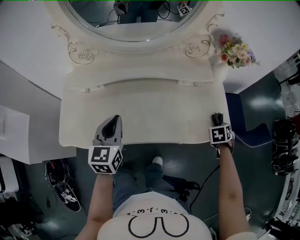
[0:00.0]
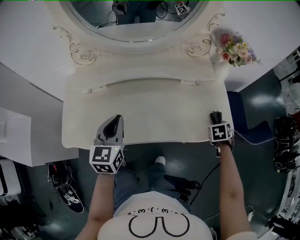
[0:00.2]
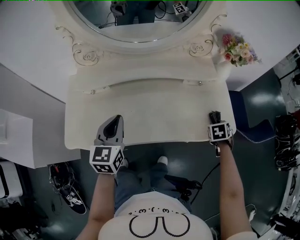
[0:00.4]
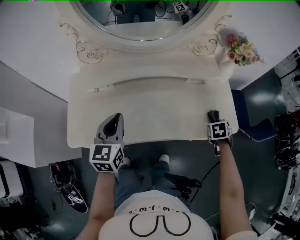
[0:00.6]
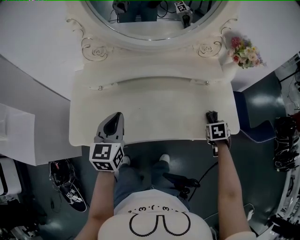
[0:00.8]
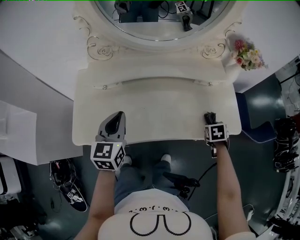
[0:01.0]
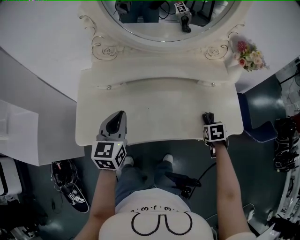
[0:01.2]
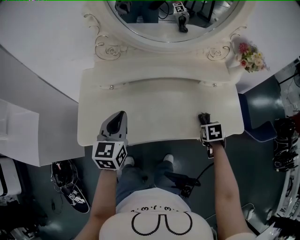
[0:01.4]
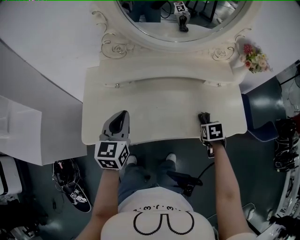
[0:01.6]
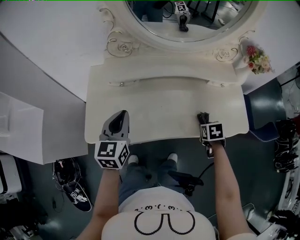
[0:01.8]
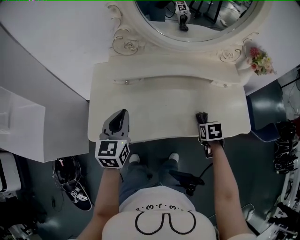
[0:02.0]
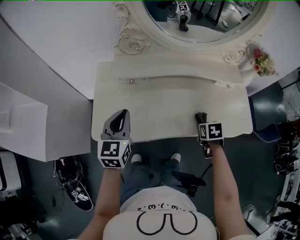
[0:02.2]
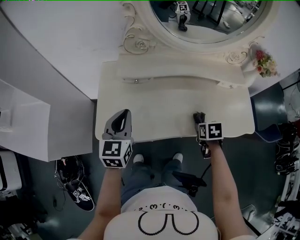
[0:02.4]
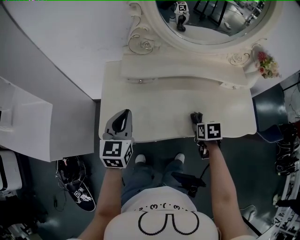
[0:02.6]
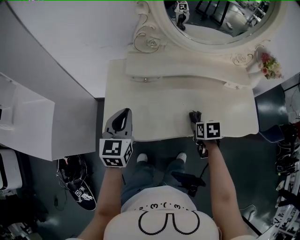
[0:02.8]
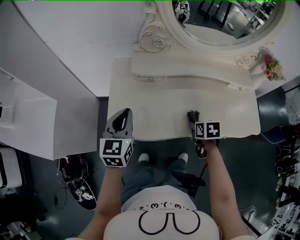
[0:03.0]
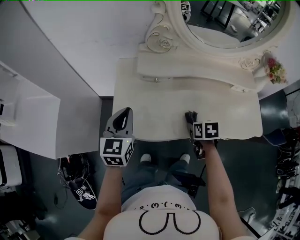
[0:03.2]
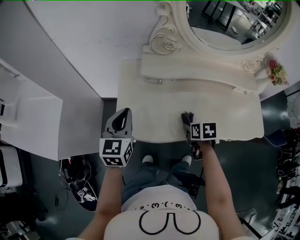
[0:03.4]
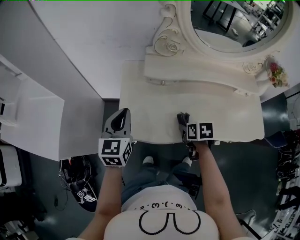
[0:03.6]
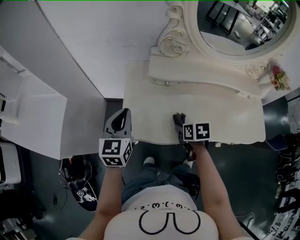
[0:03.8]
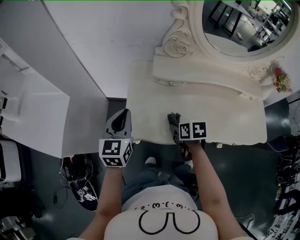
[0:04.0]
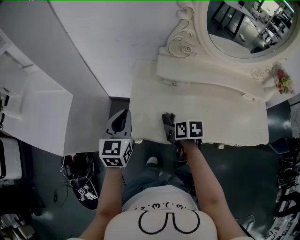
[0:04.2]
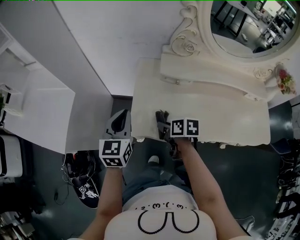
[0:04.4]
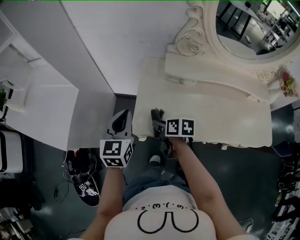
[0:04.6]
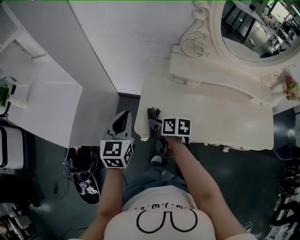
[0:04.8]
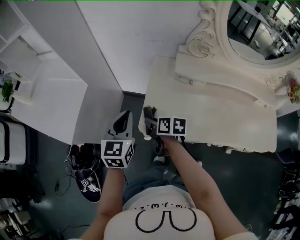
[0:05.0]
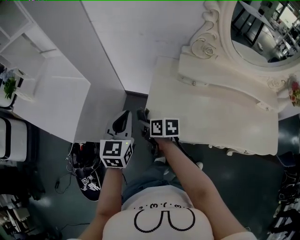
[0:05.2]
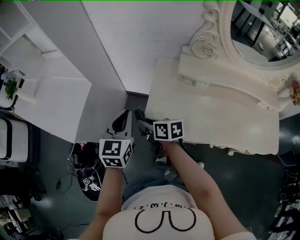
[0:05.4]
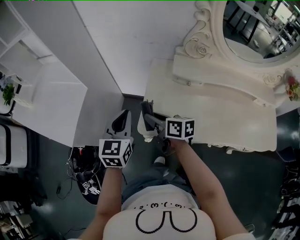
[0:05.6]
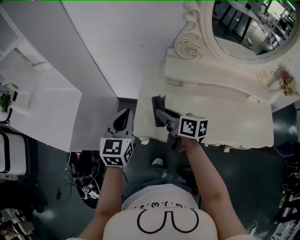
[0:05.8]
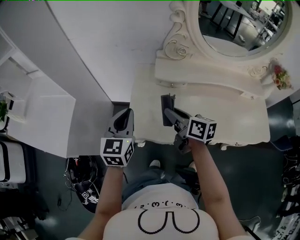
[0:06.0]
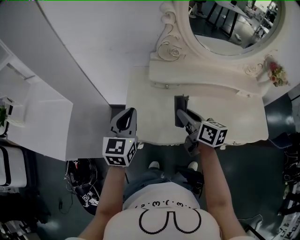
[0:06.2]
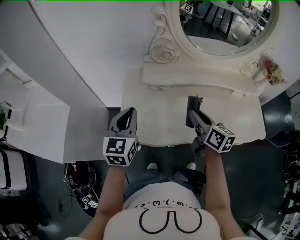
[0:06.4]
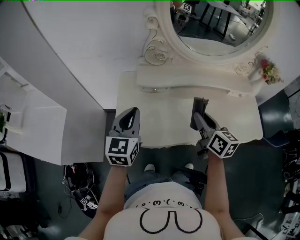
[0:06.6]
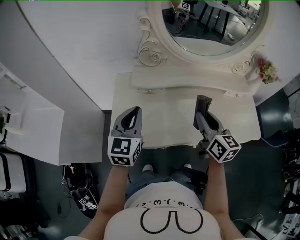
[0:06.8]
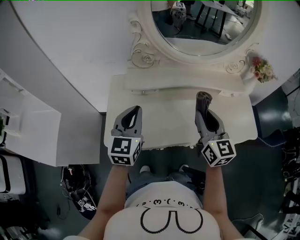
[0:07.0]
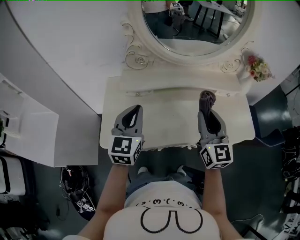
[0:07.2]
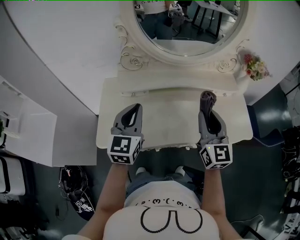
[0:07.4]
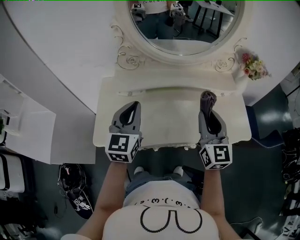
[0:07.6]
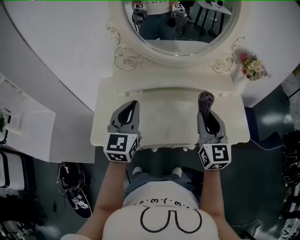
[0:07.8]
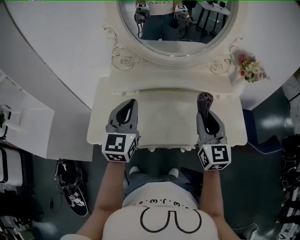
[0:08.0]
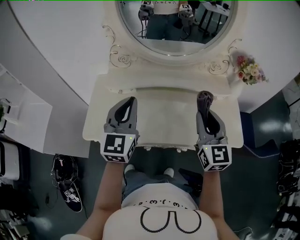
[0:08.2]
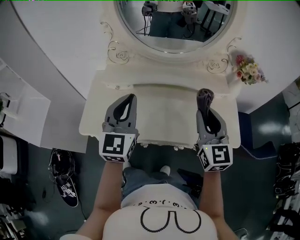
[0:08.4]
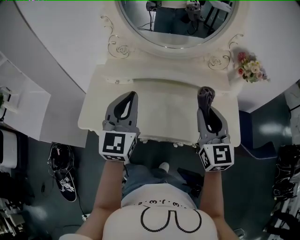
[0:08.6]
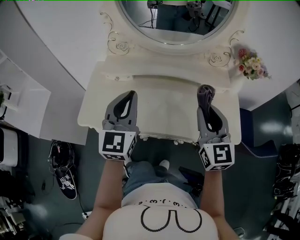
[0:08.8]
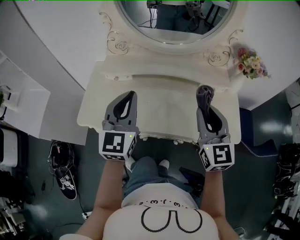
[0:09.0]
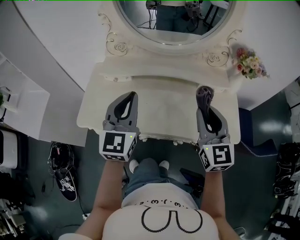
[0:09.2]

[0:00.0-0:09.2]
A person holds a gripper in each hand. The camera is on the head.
0:00.0 to 0:01.6: The right gripper moves to the left and backward, roughly 25 cm, while the left gripper moves to the left, roughly 15 cm.
0:01.6 to 0:03.0: The left gripper goes about 15 cm to the left. The right gripper shifts about 25 cm to the left.
0:03.0 to 0:04.6: The left gripper shifts approximately 15 cm to the left; the right gripper shifts some 30 cm to the left, and rotates some 30 degrees.
0:04.6 to 0:06.2: The right gripper shifts some 20 cm to the right and upward, and rotates about 30 degrees. Meanwhile the left gripper shifts approximately 10 cm to the right.
0:06.2 to 0:07.6: The right gripper moves to the right and upward, approximately 30 cm, and turns by approximately 50 degrees, while the left gripper is displaced to the right by roughly 20 cm.
0:07.6 to 0:09.2: The grippers both shift to the right by some 10 cm.

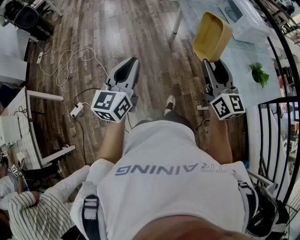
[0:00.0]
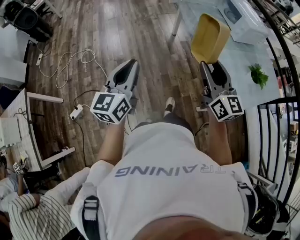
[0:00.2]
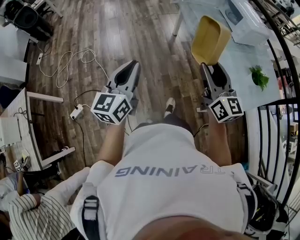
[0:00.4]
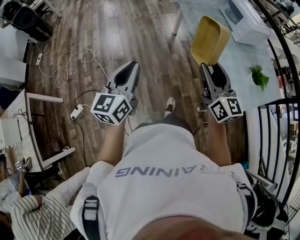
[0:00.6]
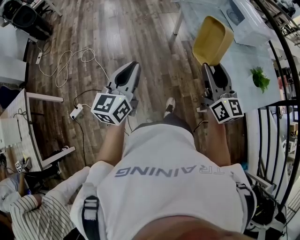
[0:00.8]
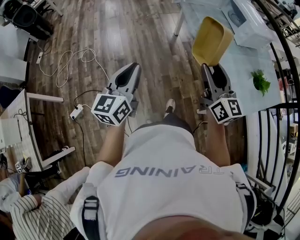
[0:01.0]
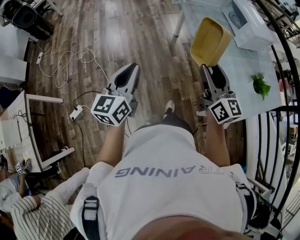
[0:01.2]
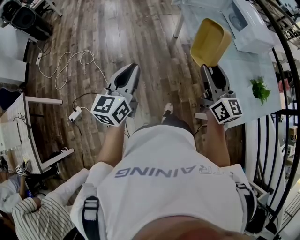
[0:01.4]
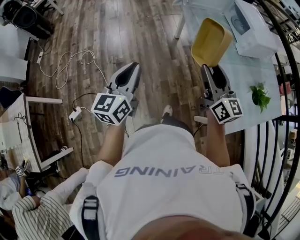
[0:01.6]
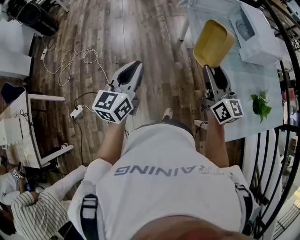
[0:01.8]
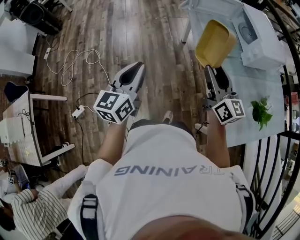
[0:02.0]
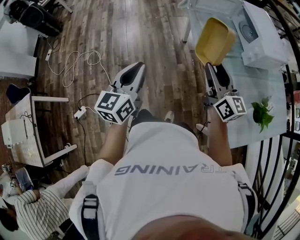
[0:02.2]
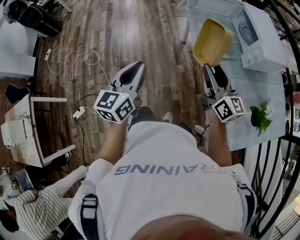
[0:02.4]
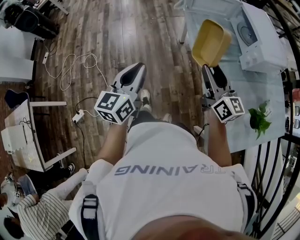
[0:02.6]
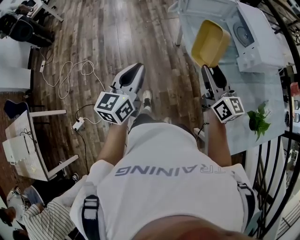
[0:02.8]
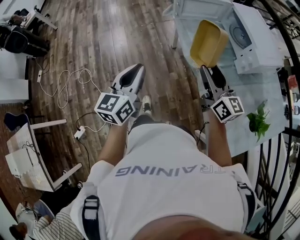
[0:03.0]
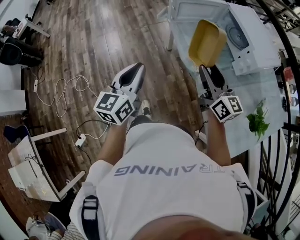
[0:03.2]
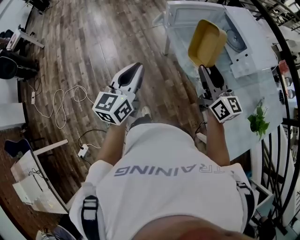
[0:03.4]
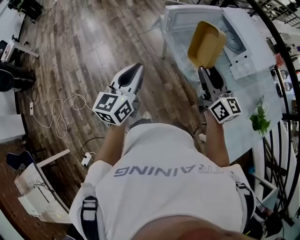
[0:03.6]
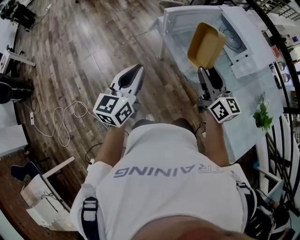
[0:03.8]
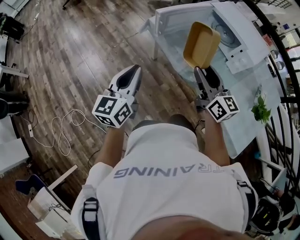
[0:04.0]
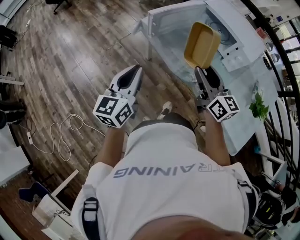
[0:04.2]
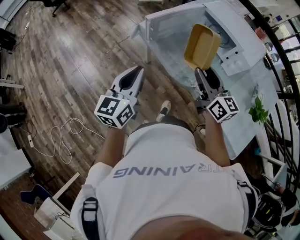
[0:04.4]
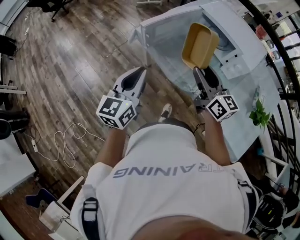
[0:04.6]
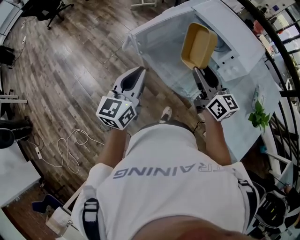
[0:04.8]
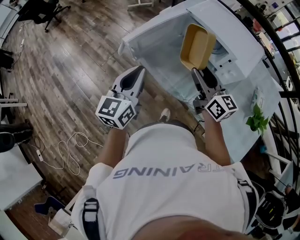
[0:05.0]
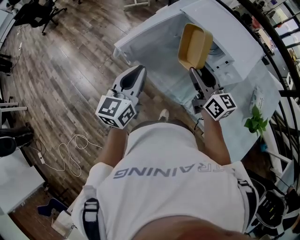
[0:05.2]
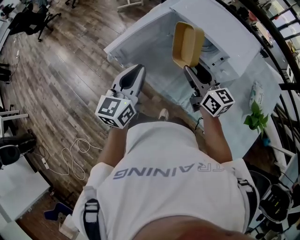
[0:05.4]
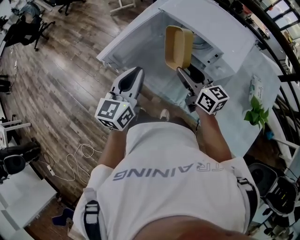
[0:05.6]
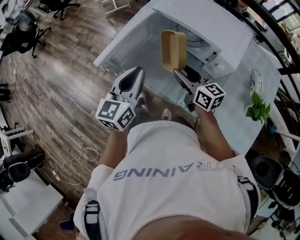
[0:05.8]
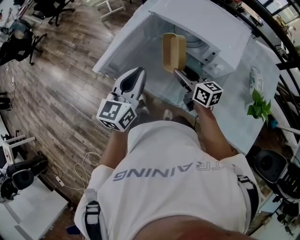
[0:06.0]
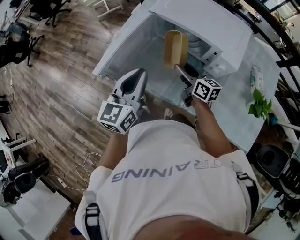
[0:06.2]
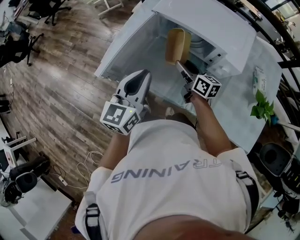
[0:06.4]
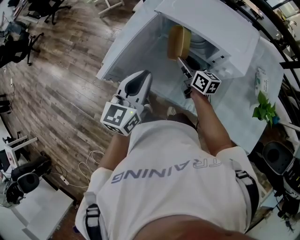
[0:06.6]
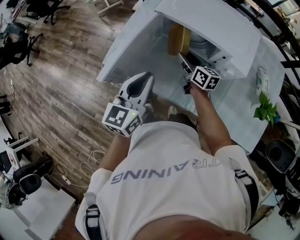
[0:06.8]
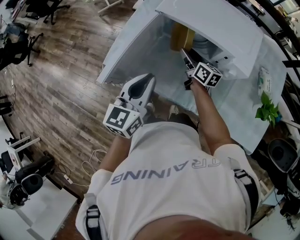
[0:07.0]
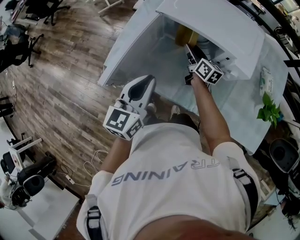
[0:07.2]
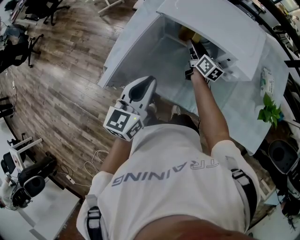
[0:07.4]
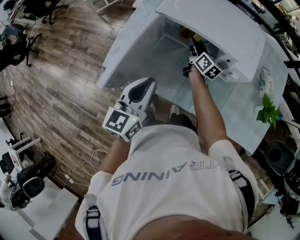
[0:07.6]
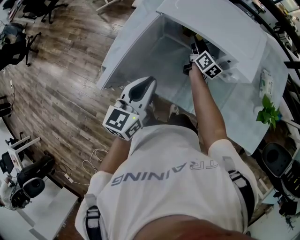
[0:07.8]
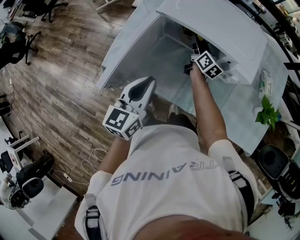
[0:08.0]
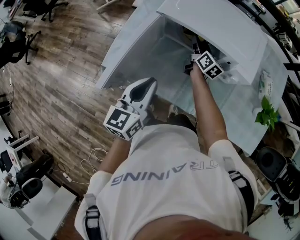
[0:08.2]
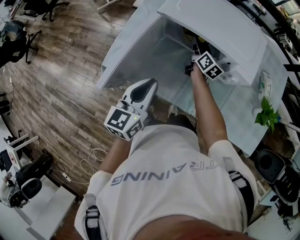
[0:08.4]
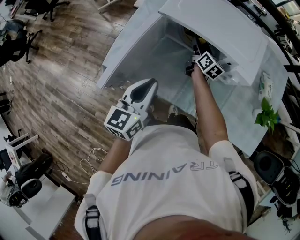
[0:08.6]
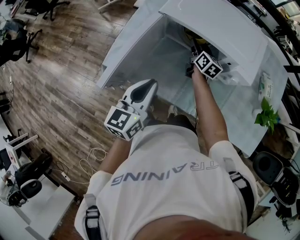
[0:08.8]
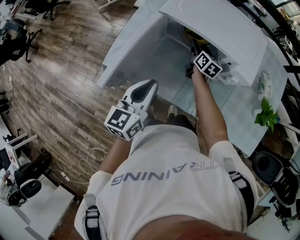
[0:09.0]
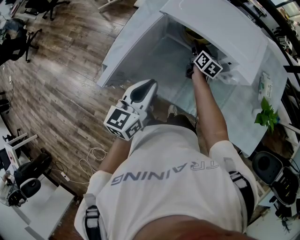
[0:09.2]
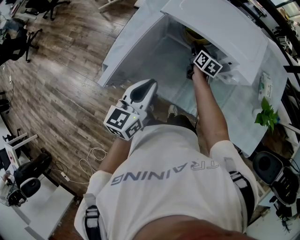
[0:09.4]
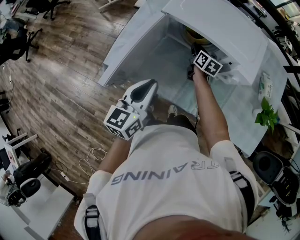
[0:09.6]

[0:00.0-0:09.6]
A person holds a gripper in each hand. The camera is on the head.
0:00.0 to 0:01.6: Both grippers travel together forward, approximately 15 cm.
0:01.6 to 0:03.2: The two grippers go approximately 30 cm forward.
0:03.2 to 0:04.8: The two grippers go some 25 cm forward. The left gripper turns by approximately 30 degrees. Meanwhile the right gripper rotates roughly 20 degrees.
0:04.8 to 0:06.4: The left gripper shifts roughly 20 cm forward and to the right, while the right gripper goes some 25 cm downward, forward and to the right, and swivels about 30 degrees.
0:06.4 to 0:08.0: The right gripper moves forward, some 15 cm, and rotates approximately 30 degrees, while the left gripper ends up some 5 cm from where it was.
0:08.0 to 0:09.6: The right gripper moves approximately 5 cm, changes its angle by some 20 degrees, and closes its fingers.

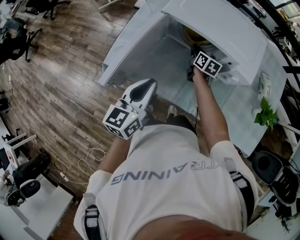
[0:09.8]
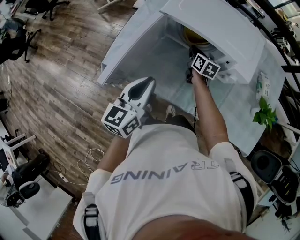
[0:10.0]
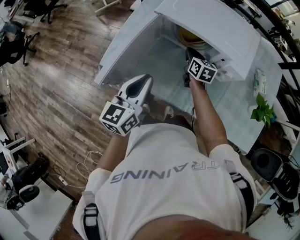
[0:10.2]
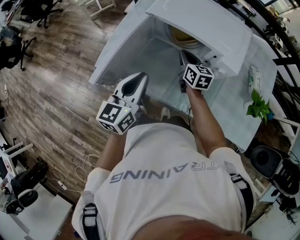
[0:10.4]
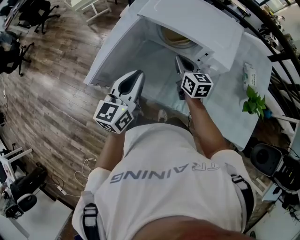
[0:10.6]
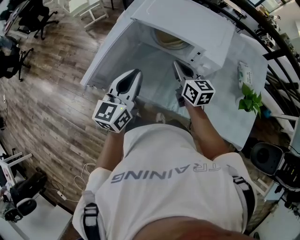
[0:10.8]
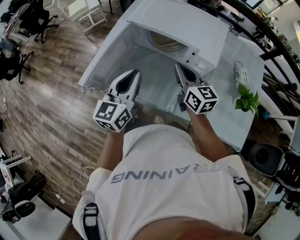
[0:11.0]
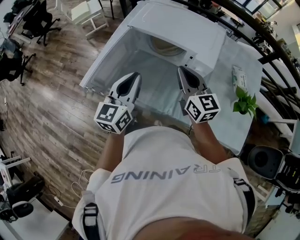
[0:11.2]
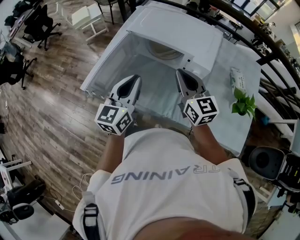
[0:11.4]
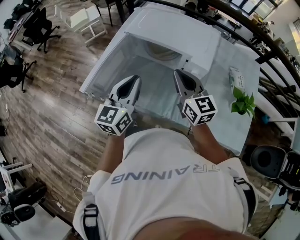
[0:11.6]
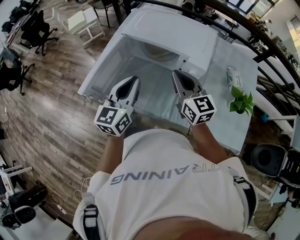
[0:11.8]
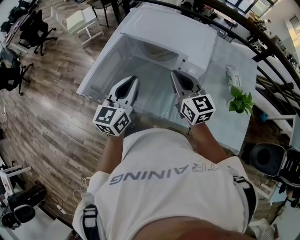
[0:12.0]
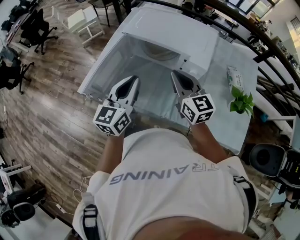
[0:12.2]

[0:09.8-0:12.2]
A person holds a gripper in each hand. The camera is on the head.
0:09.8 to 0:11.0: The right gripper heads upward and backward, covering about 25 cm, and swivels approximately 30 degrees; the left gripper shifts about 10 cm to the right and upward.
0:11.0 to 0:12.2: The right gripper moves upward, roughly 5 cm.

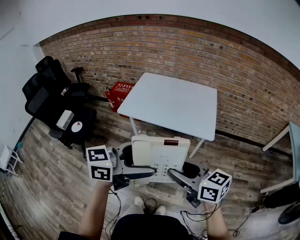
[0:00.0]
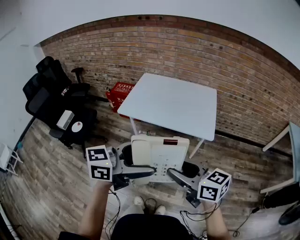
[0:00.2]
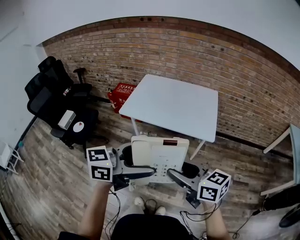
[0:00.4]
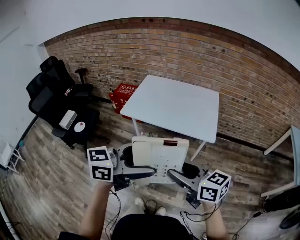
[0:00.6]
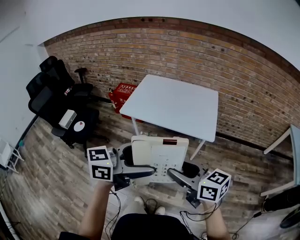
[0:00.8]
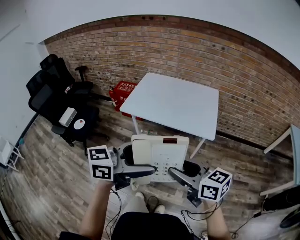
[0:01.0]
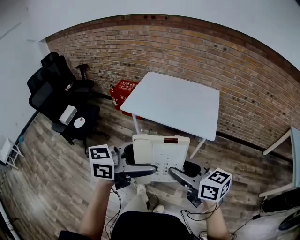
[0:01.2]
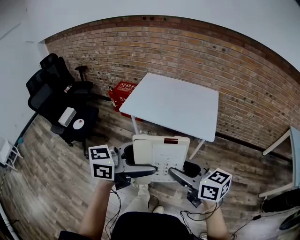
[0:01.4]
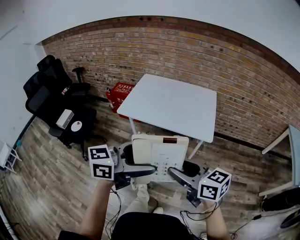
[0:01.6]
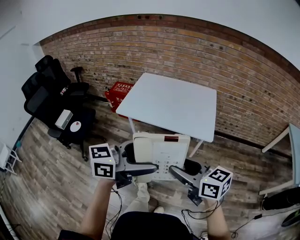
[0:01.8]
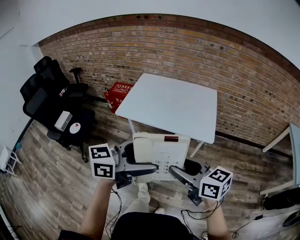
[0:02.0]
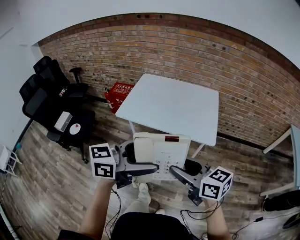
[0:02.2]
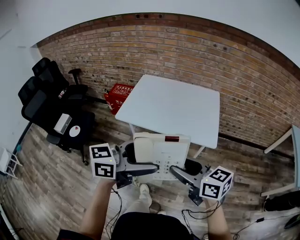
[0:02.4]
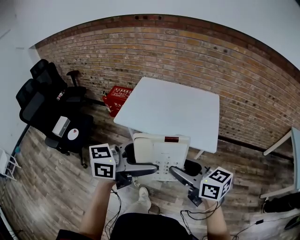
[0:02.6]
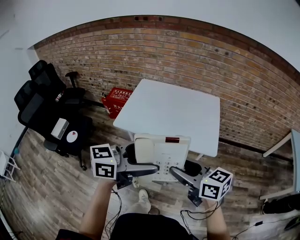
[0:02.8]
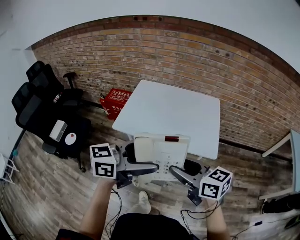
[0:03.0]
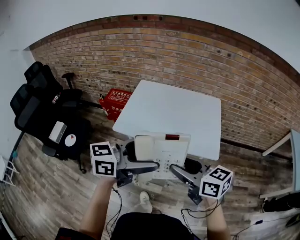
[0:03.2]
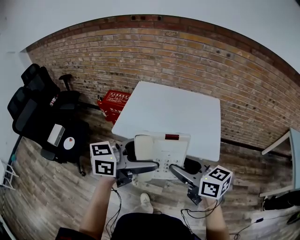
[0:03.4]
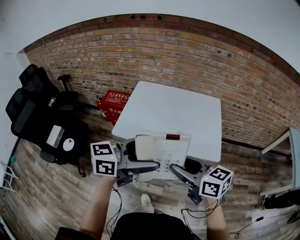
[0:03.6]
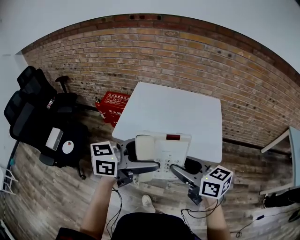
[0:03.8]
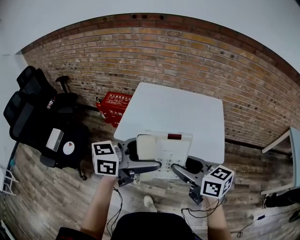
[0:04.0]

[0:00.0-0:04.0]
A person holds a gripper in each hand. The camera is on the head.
0:00.0 to 0:01.4: There are only small adjustments of the grippers.
0:01.4 to 0:02.6: The two grippers go some 10 cm forward.
0:02.6 to 0:04.0: The two grippers go roughly 15 cm forward and to the left.
